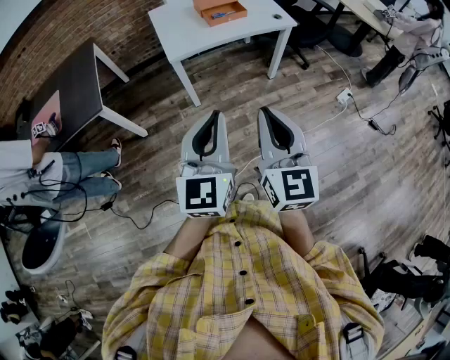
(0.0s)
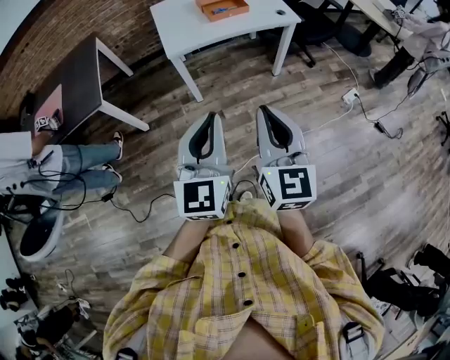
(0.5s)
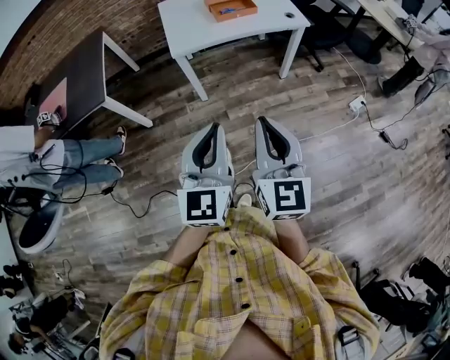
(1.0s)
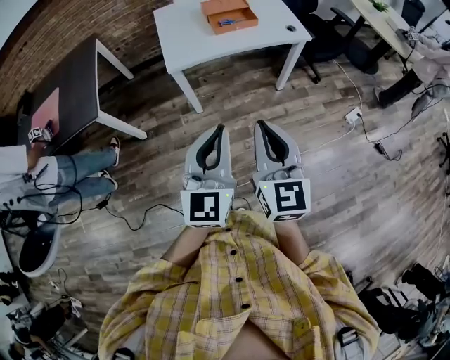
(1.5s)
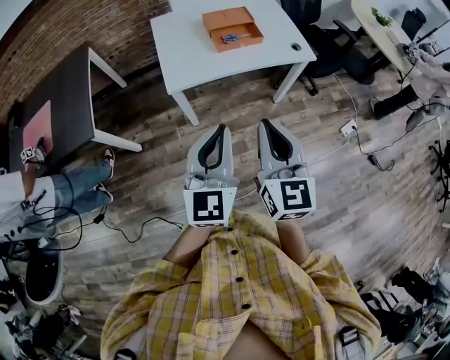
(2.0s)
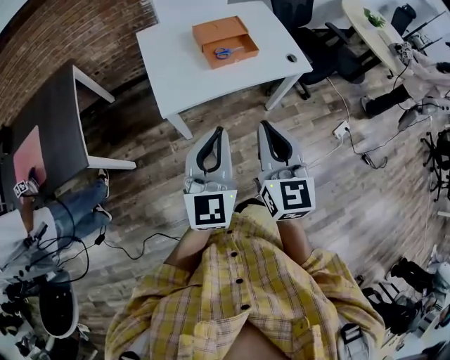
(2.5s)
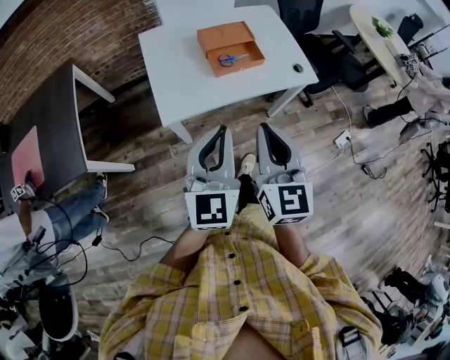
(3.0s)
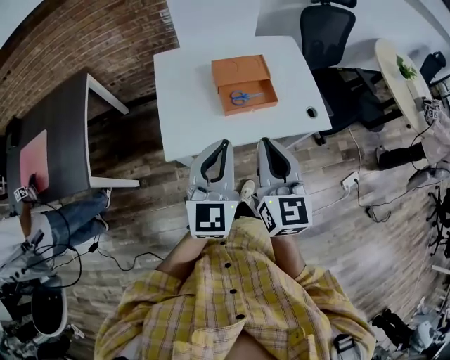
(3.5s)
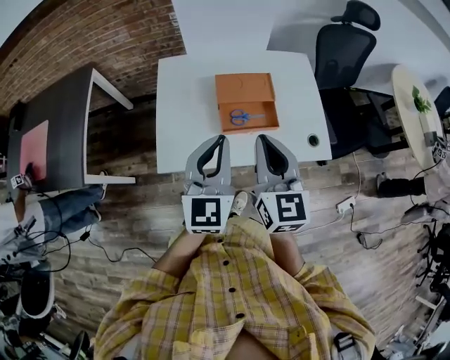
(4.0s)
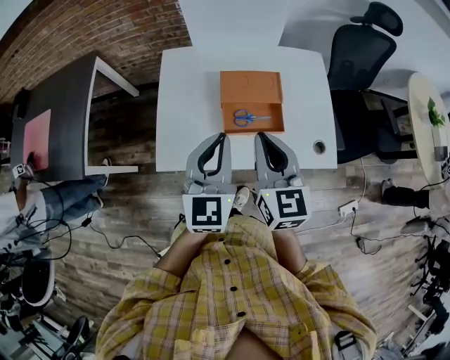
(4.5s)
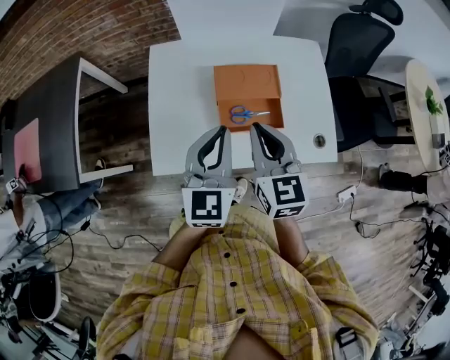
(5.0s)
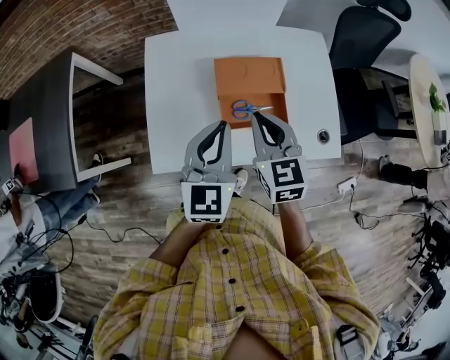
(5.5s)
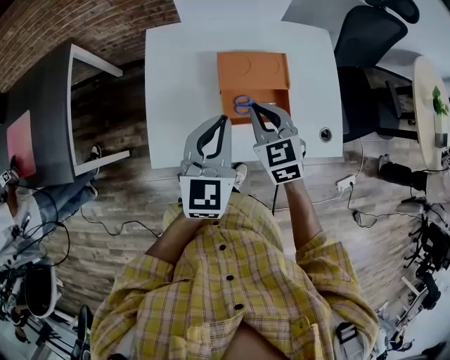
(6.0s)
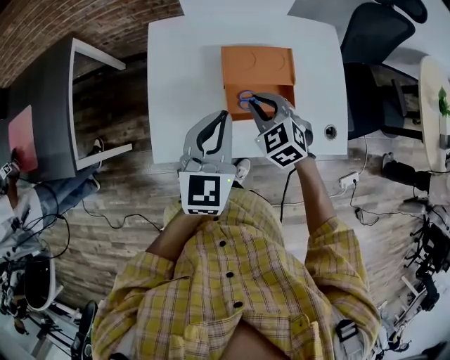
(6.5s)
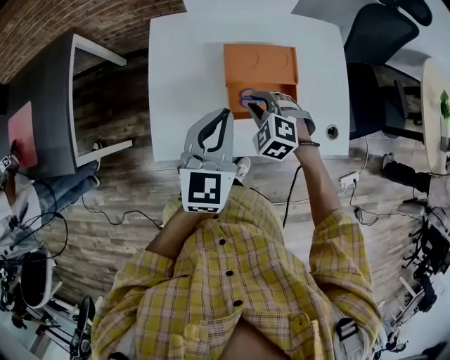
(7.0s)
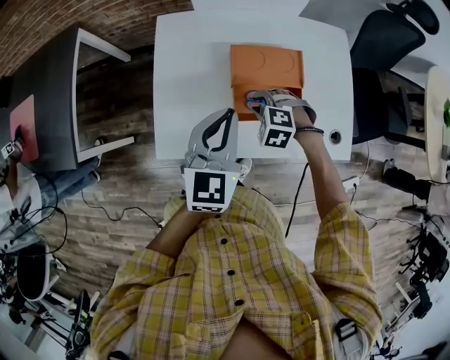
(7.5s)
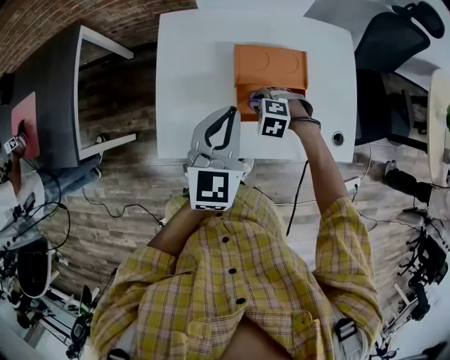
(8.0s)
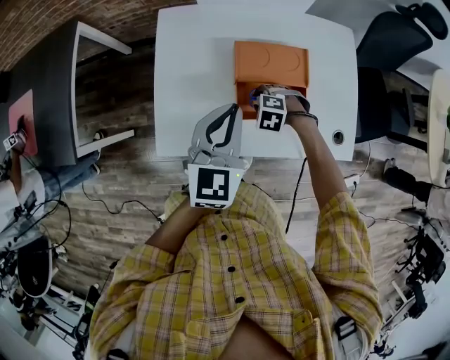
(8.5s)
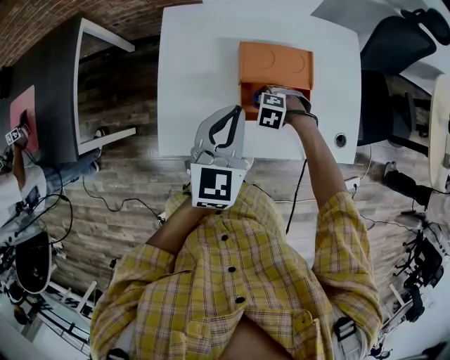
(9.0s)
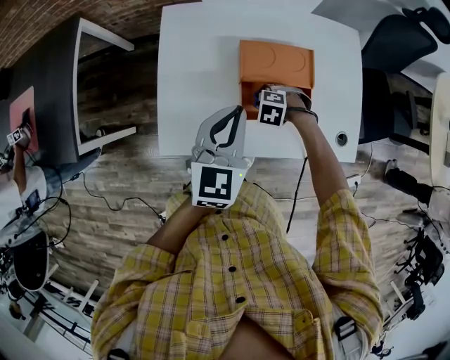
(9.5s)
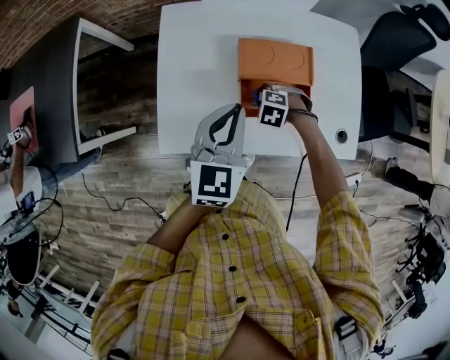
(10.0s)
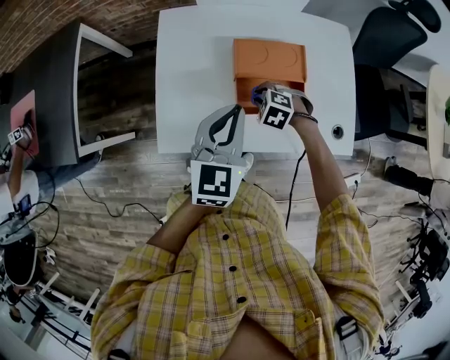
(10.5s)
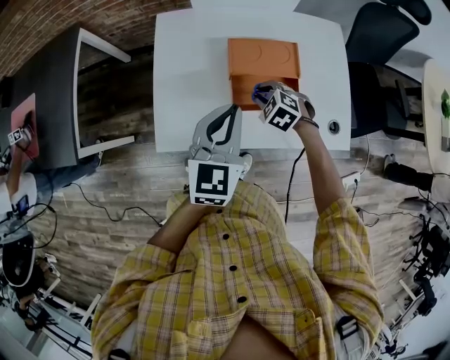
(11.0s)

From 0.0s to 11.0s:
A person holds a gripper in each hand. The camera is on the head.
From 0.0s to 2.0s: The two grippers go some 25 cm forward.
From 2.0s to 3.5s: Both grippers travel together forward, roughly 30 cm.
From 3.5s to 5.5s: The left gripper shifts about 20 cm forward. The right gripper moves forward and downward, approximately 25 cm, and swivels some 30 degrees.
From 5.5s to 7.5s: The right gripper travels downward by roughly 20 cm, tips its fingers downward by roughly 40 degrees, and opens.
From 7.5s to 9.0s: The right gripper shifts about 10 cm downward.
From 9.0s to 11.0s: The right gripper shifts about 10 cm upward, and rotates about 20 degrees.

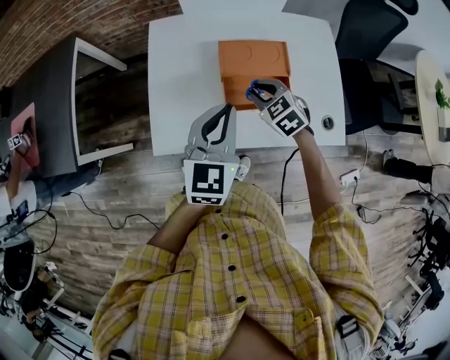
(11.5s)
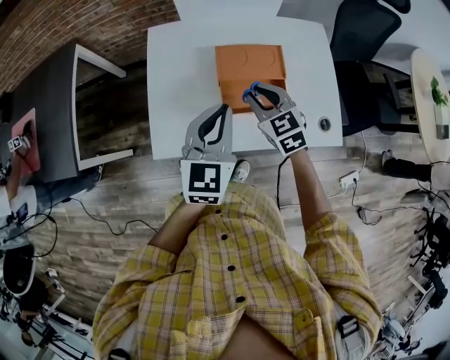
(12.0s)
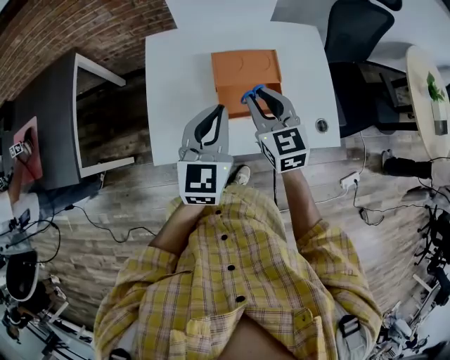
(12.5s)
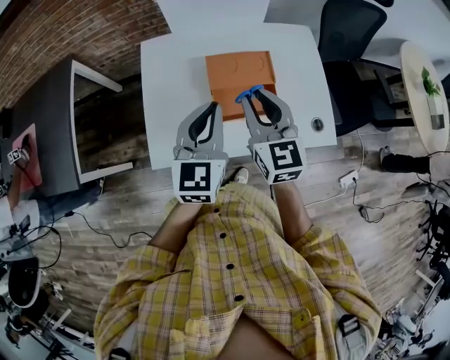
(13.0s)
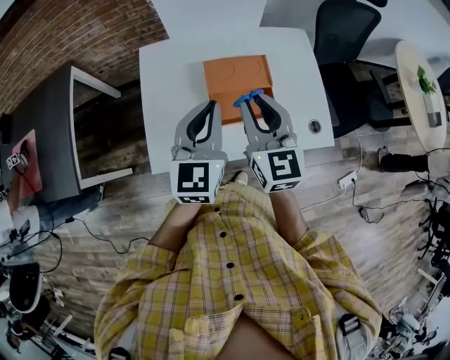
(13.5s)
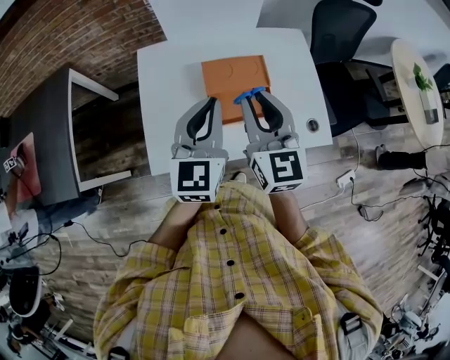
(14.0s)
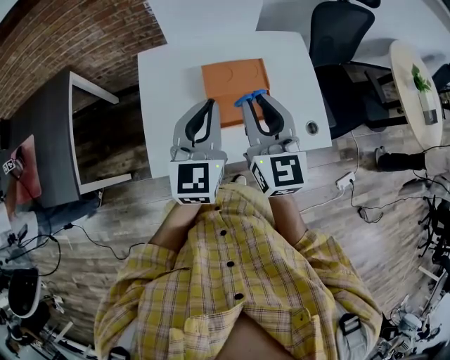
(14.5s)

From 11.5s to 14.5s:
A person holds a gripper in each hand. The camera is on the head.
From 11.5s to 13.0s: The right gripper travels upward by approximately 20 cm, and angles its fingers upward, by roughly 40 degrees.
From 13.0s to 14.5s: The right gripper heads upward, covering roughly 5 cm.

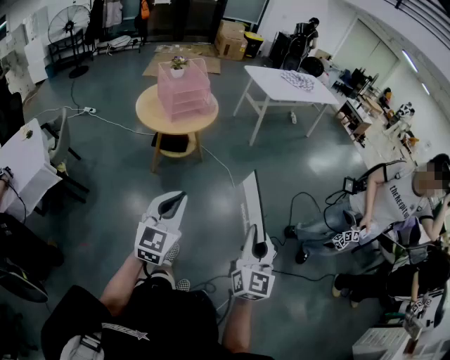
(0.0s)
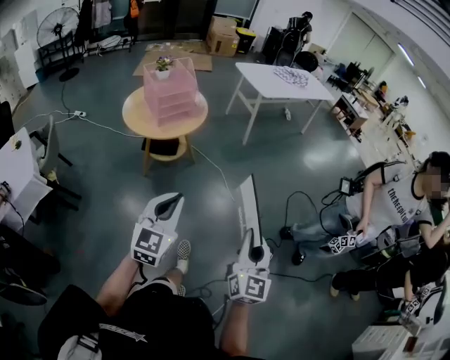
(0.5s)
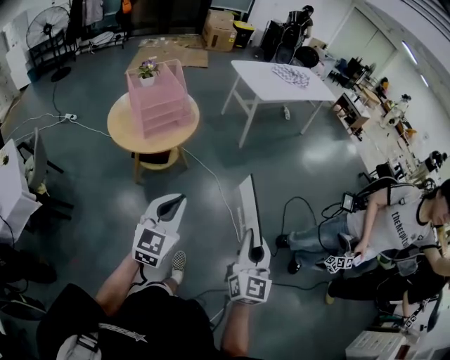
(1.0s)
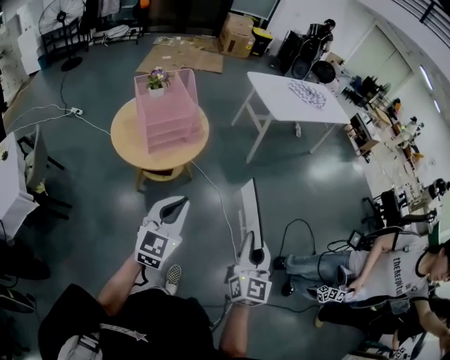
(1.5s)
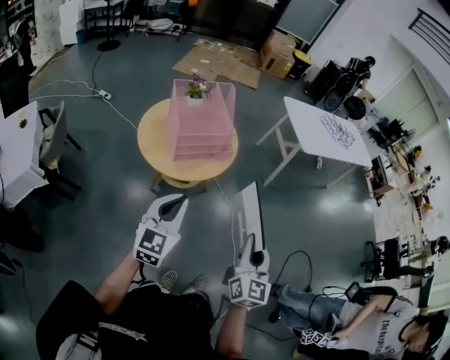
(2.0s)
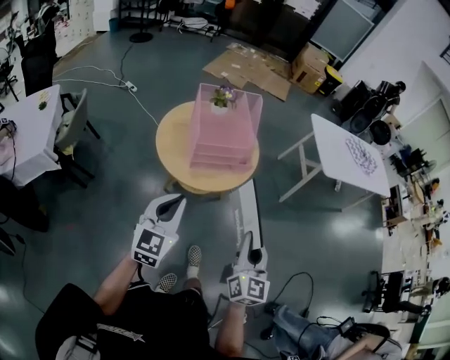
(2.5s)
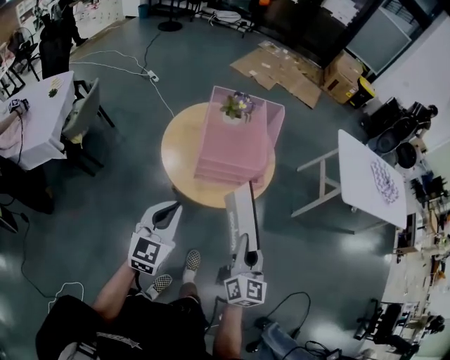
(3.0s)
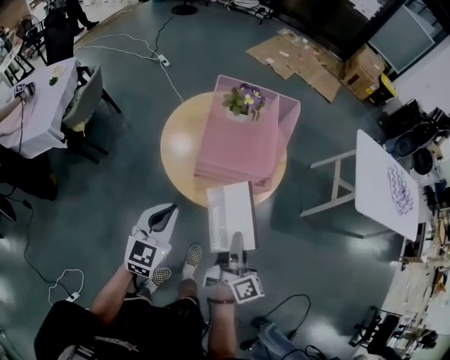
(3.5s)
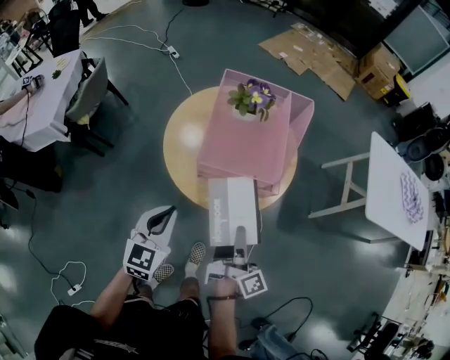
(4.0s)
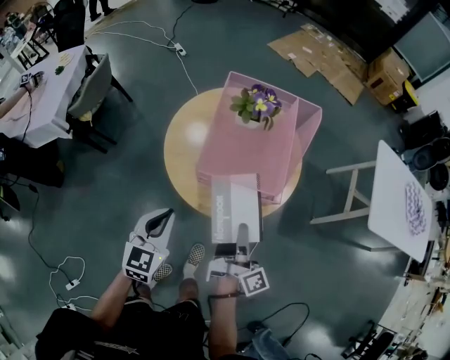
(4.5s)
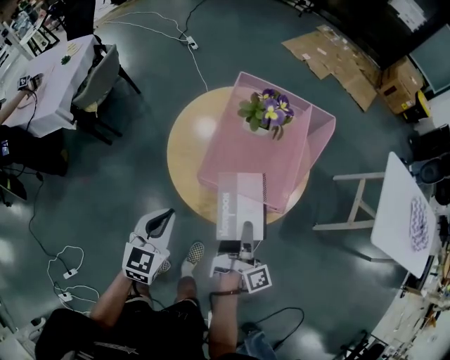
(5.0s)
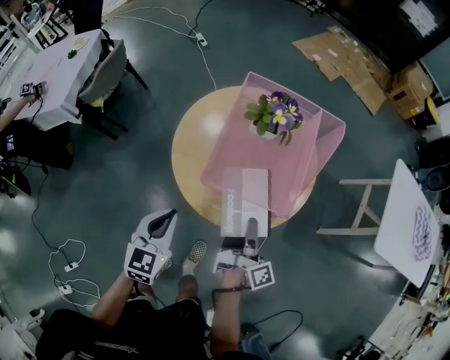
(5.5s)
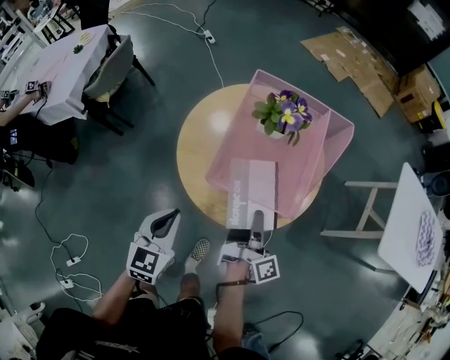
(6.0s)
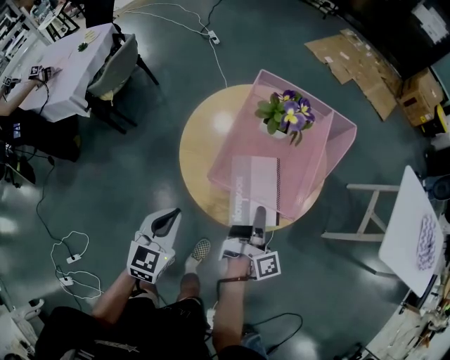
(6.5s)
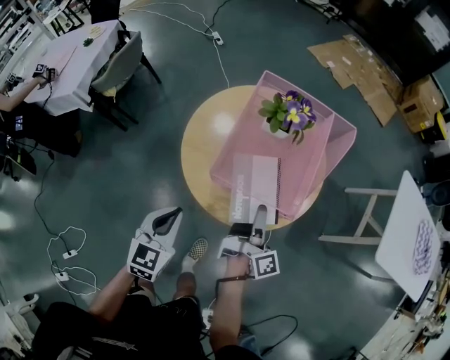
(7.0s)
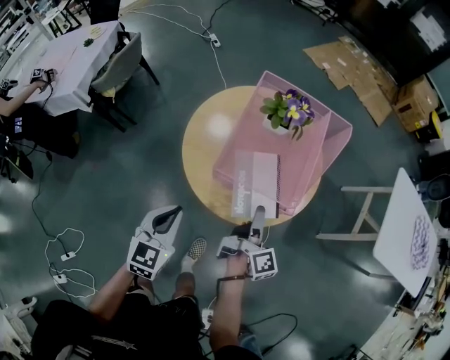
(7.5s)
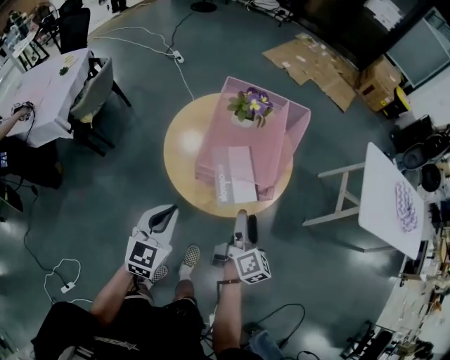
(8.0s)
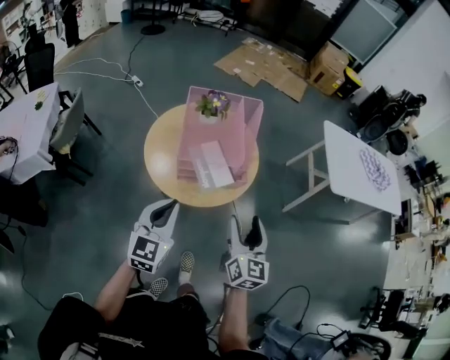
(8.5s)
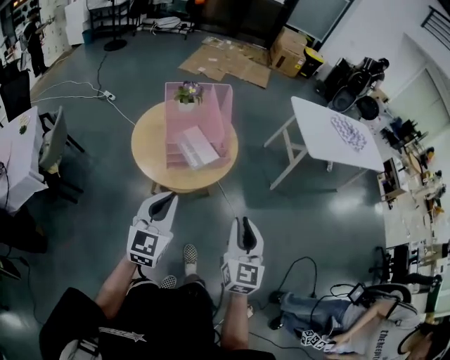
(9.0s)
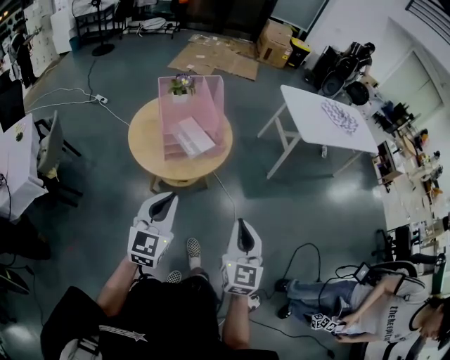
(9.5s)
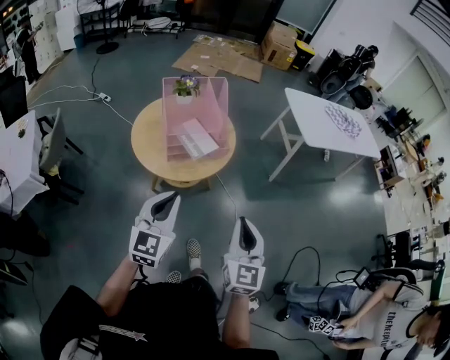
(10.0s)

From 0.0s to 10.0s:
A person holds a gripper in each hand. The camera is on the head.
From 0.0s to 2.0s: The grippers both shift forward by about 35 cm.
From 2.0s to 4.0s: The left gripper ends up some 20 cm from where it was, and swivels roughly 30 degrees. Meanwhile the right gripper shifts by roughly 35 cm, and rotates around the line of its fingers by about 70 degrees, clockwise from behind.
From 4.0s to 6.0s: The right gripper is displaced forward and downward by roughly 15 cm. The left gripper ends up roughly 5 cm from where it was.
From 6.0s to 8.0s: The right gripper is displaced backward and upward by about 10 cm, swivels about 30 degrees, and opens; the left gripper shifts approximately 5 cm upward.
From 8.0s to 10.0s: The left gripper goes some 20 cm backward, upward and to the right, and changes its angle by about 30 degrees, while the right gripper goes approximately 35 cm backward and upward, rotates around the line of its fingers by roughly 50 degrees, counterclockwise from behind, and closes its fingers.

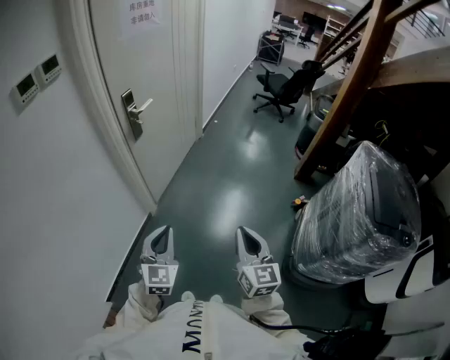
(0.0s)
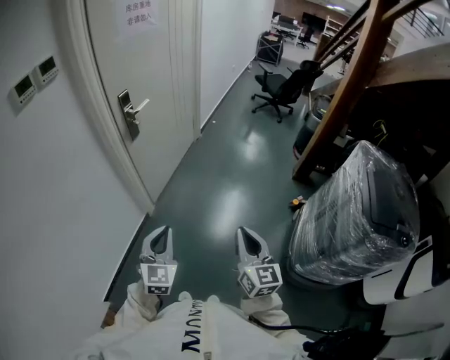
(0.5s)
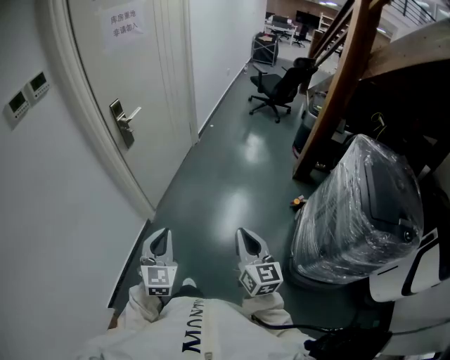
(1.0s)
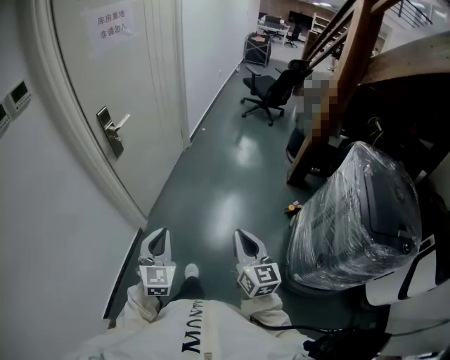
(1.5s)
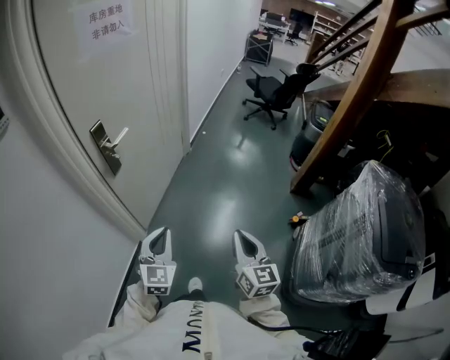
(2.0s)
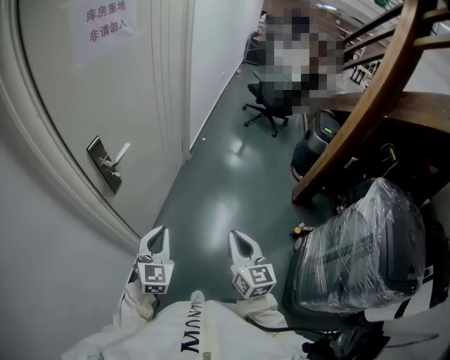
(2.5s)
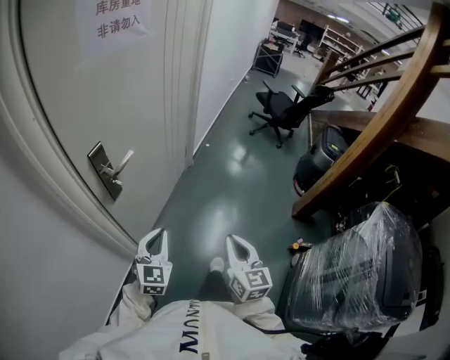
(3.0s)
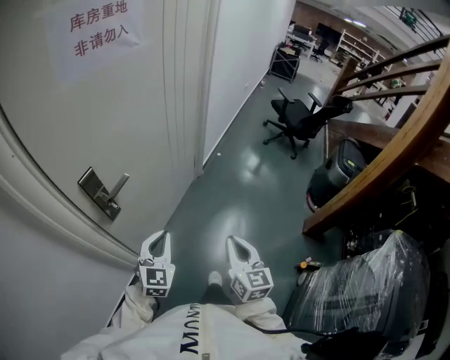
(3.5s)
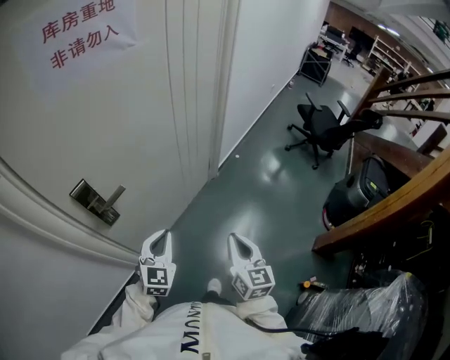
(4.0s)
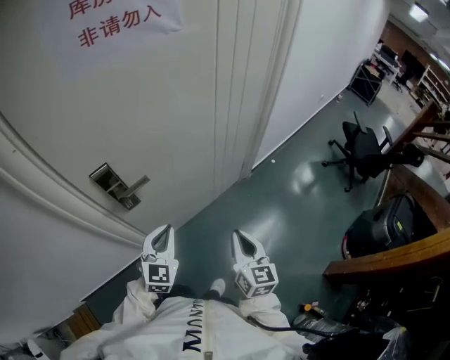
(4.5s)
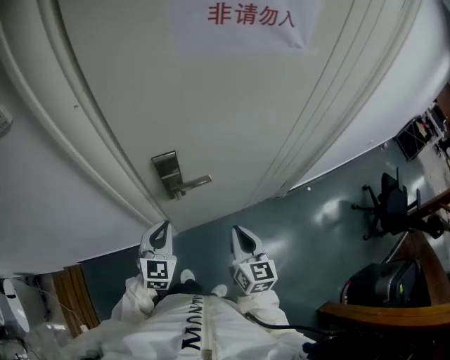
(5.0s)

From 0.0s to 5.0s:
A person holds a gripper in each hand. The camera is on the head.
From 0.0s to 2.5s: Both grippers travel together forward, some 30 cm.
From 2.5s to 5.0s: The right gripper moves roughly 40 cm, and turns by some 50 degrees. Meanwhile the left gripper ends up about 25 cm from where it was, and turns by roughly 50 degrees.
